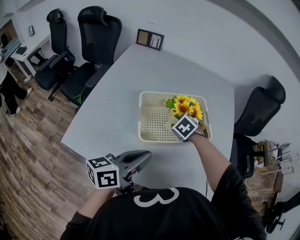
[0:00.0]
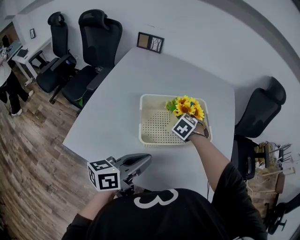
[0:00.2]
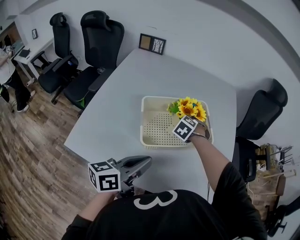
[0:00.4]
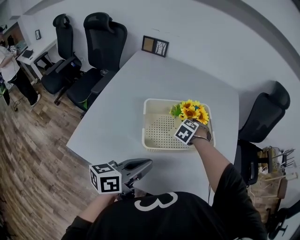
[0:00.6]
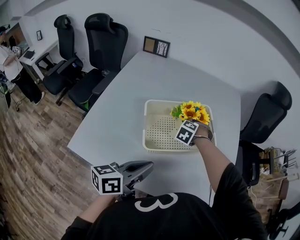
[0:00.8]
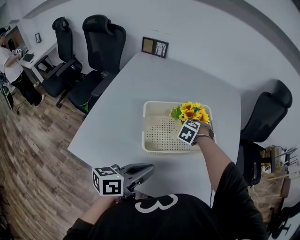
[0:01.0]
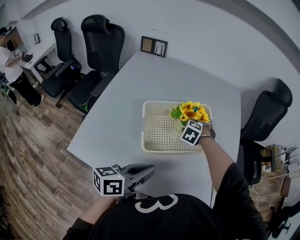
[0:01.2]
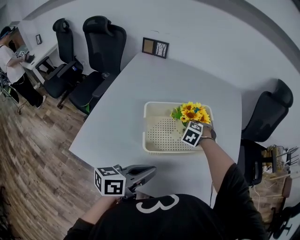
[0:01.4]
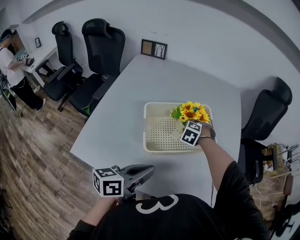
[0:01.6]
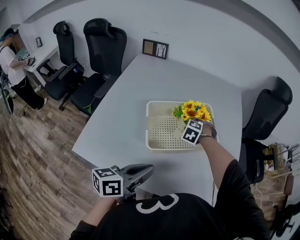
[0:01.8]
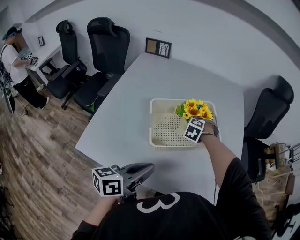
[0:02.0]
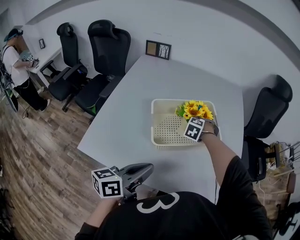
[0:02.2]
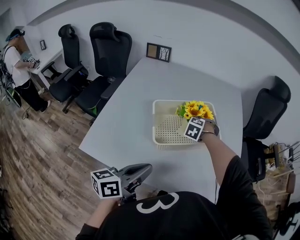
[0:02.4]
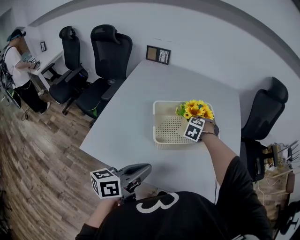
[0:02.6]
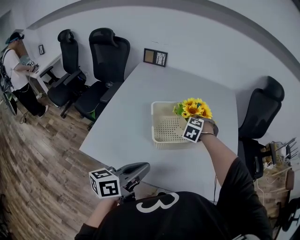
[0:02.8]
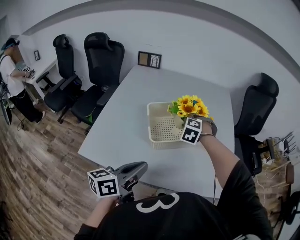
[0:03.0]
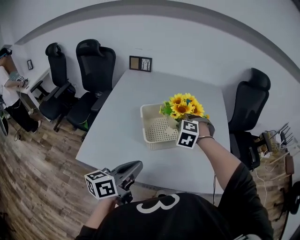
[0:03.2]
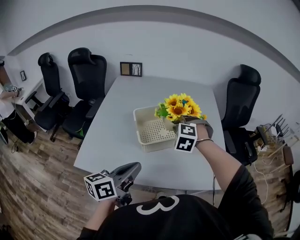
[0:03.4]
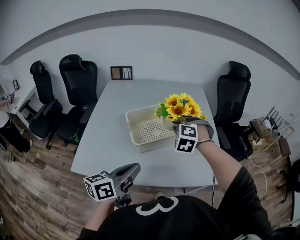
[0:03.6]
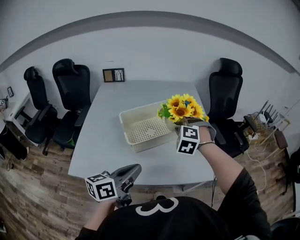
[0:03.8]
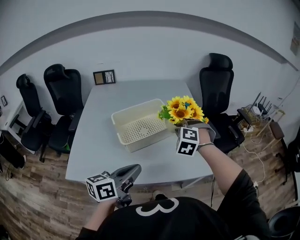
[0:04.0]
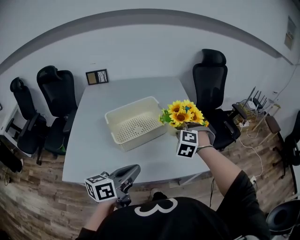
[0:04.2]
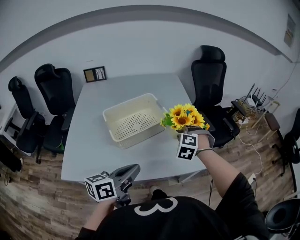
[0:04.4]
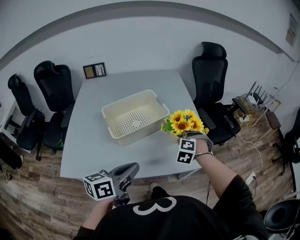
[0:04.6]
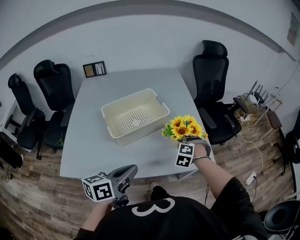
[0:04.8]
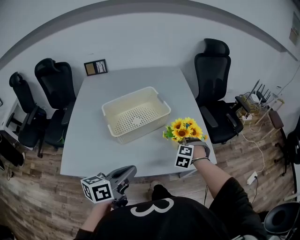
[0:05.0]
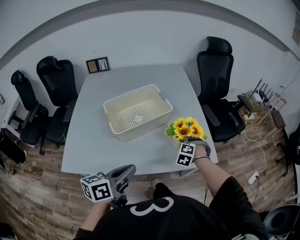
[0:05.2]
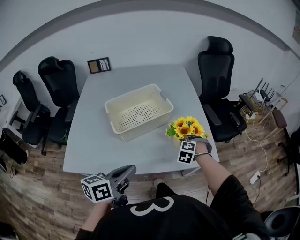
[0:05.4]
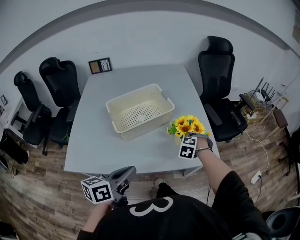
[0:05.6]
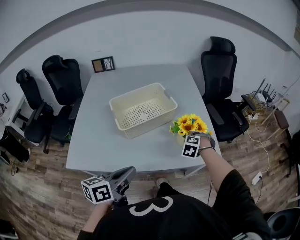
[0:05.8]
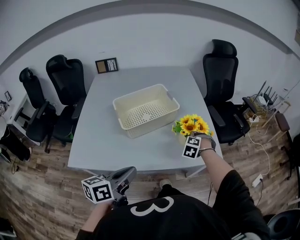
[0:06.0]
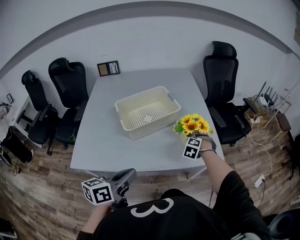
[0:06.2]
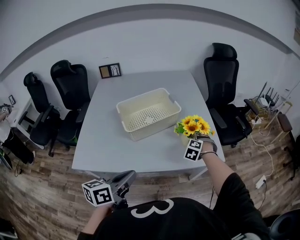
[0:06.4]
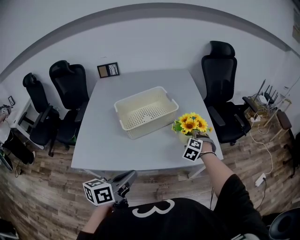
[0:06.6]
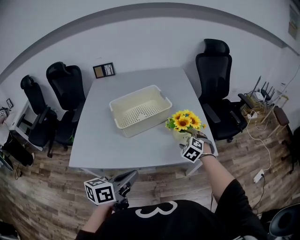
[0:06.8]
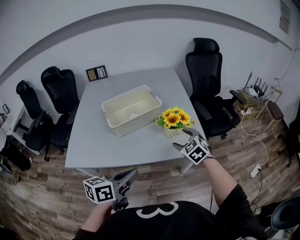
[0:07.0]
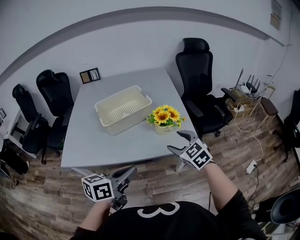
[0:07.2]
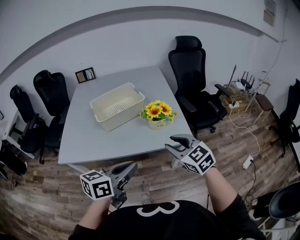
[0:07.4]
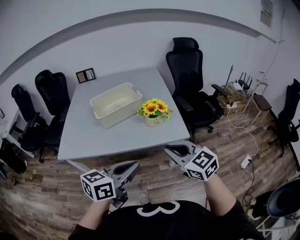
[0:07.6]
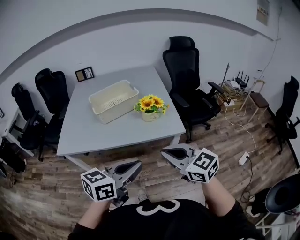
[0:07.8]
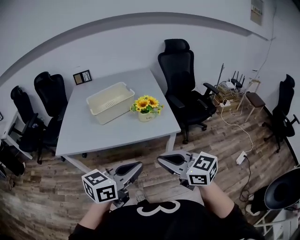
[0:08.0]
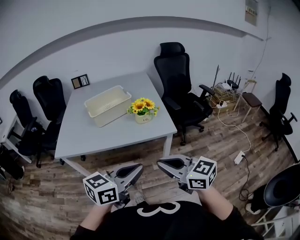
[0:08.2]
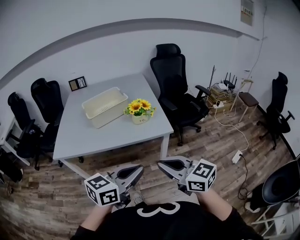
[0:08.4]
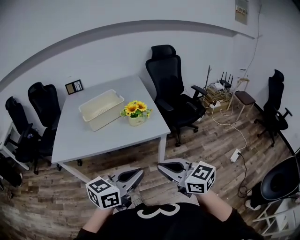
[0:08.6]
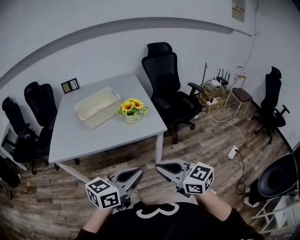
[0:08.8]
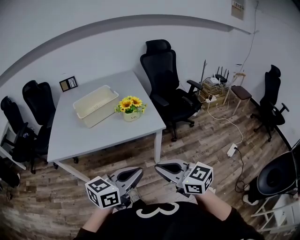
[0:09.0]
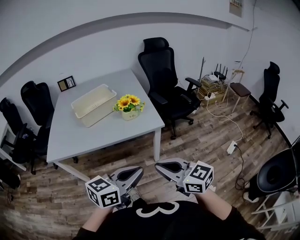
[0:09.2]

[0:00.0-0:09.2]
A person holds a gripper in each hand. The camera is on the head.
0:00.0 to 0:01.6: The right gripper shifts by roughly 5 cm.
0:01.6 to 0:03.0: The left gripper is displaced backward by about 10 cm; the right gripper goes roughly 10 cm upward and backward.
0:03.0 to 0:04.6: The left gripper goes roughly 10 cm to the right, while the right gripper travels to the right by about 25 cm.
0:04.6 to 0:06.2: The left gripper goes approximately 5 cm backward, while the right gripper travels downward by roughly 10 cm, and opens its fingers.
0:06.2 to 0:07.6: The right gripper moves backward and upward, roughly 35 cm, tilts its fingers roughly 40 degrees upward, and closes. The left gripper heads to the right and backward, covering about 20 cm.
0:07.6 to 0:09.2: The right gripper moves backward, roughly 15 cm. The left gripper goes approximately 15 cm backward and to the right.

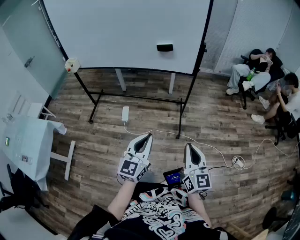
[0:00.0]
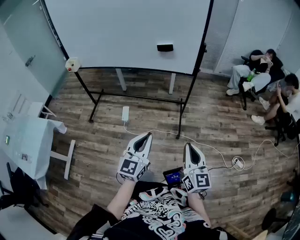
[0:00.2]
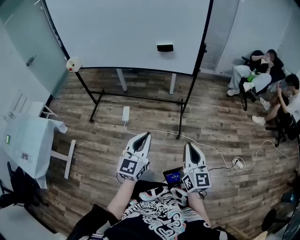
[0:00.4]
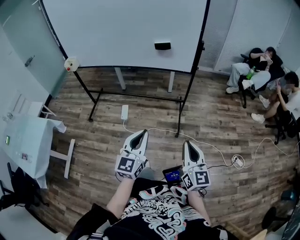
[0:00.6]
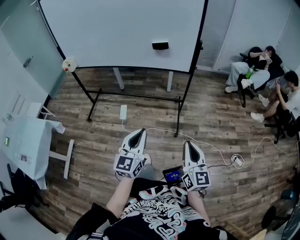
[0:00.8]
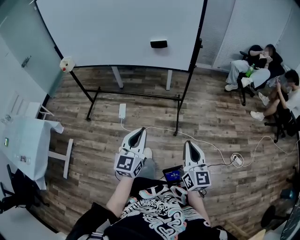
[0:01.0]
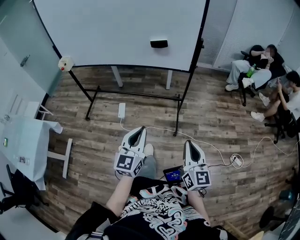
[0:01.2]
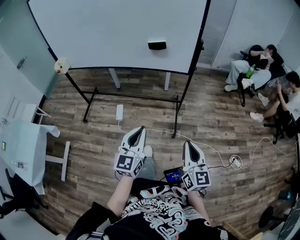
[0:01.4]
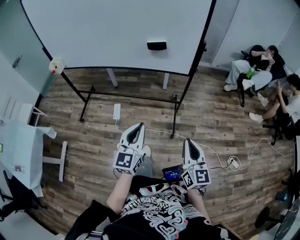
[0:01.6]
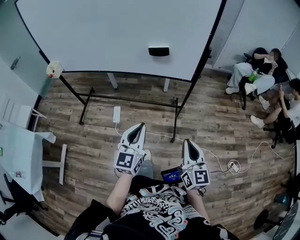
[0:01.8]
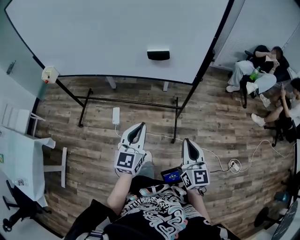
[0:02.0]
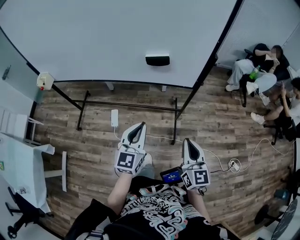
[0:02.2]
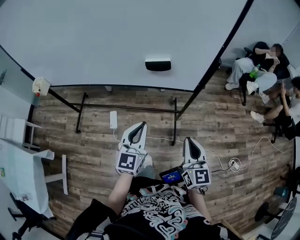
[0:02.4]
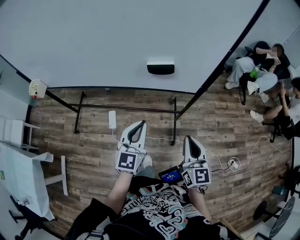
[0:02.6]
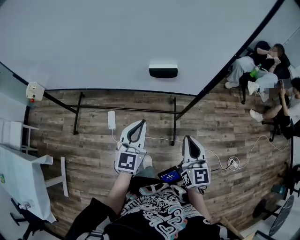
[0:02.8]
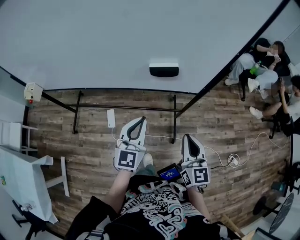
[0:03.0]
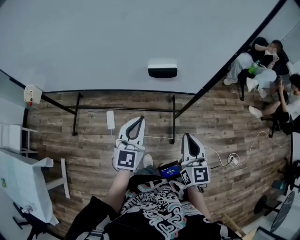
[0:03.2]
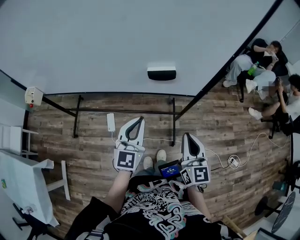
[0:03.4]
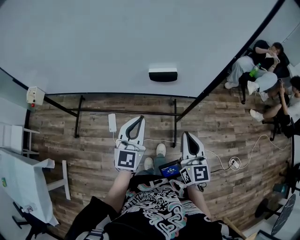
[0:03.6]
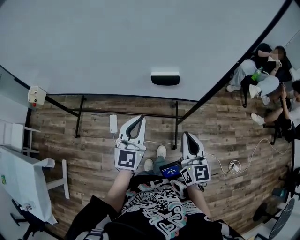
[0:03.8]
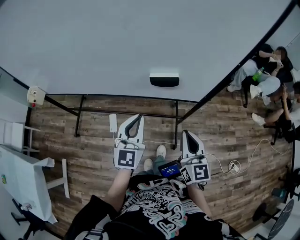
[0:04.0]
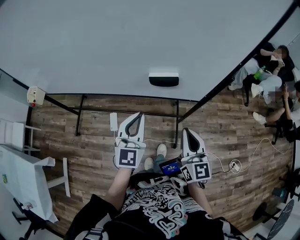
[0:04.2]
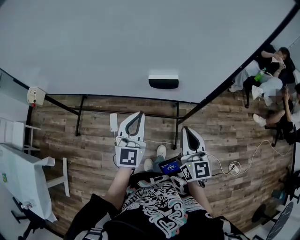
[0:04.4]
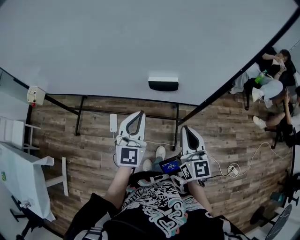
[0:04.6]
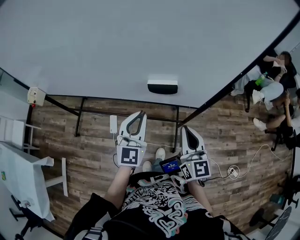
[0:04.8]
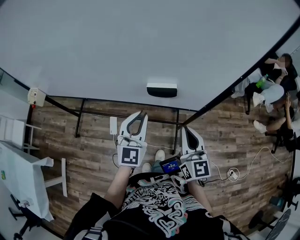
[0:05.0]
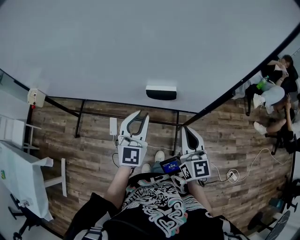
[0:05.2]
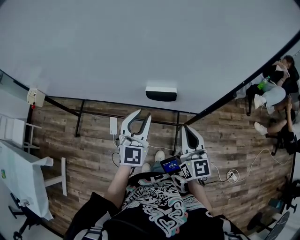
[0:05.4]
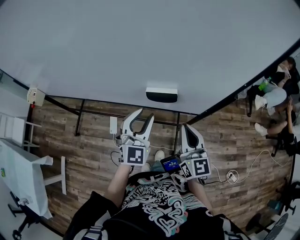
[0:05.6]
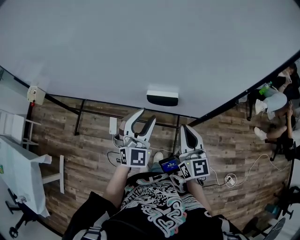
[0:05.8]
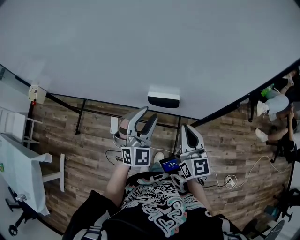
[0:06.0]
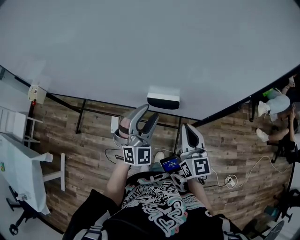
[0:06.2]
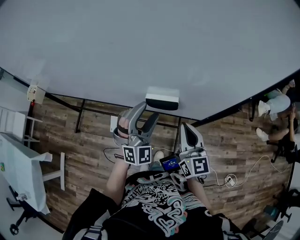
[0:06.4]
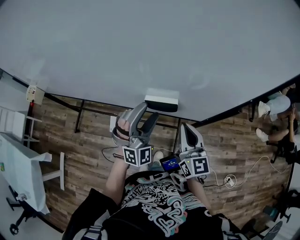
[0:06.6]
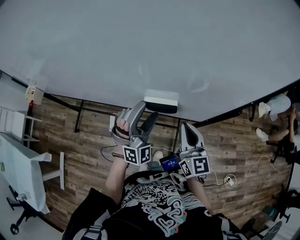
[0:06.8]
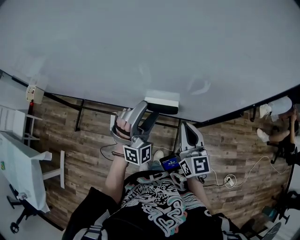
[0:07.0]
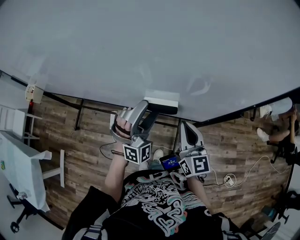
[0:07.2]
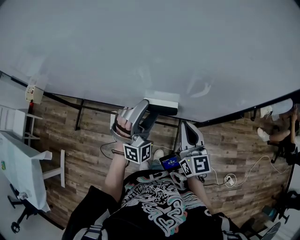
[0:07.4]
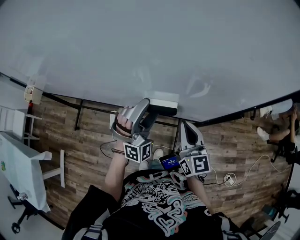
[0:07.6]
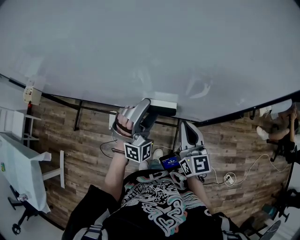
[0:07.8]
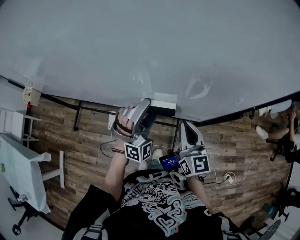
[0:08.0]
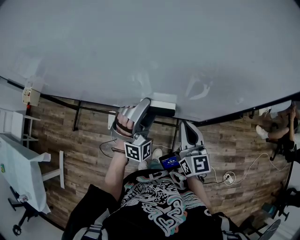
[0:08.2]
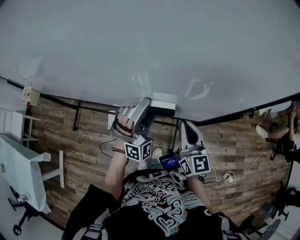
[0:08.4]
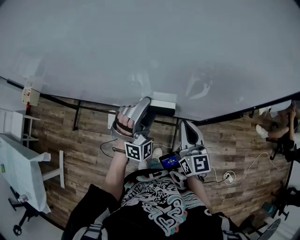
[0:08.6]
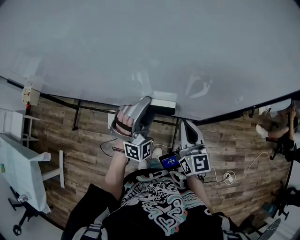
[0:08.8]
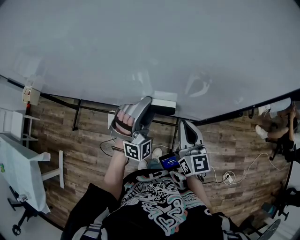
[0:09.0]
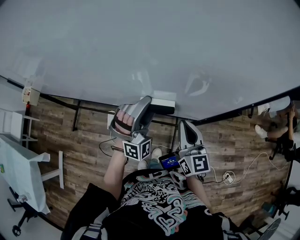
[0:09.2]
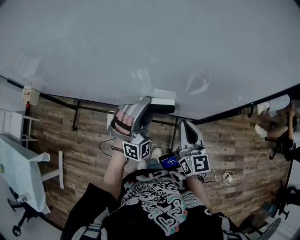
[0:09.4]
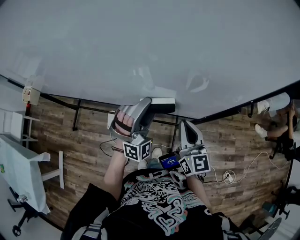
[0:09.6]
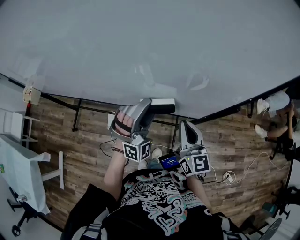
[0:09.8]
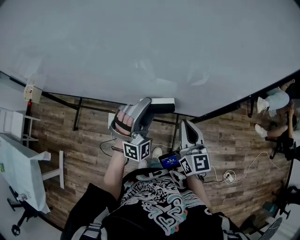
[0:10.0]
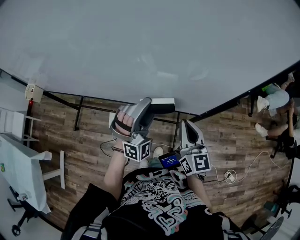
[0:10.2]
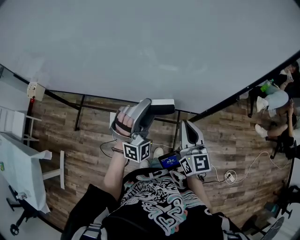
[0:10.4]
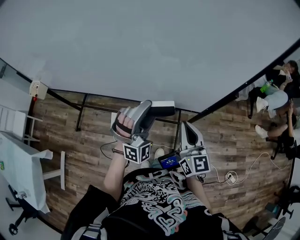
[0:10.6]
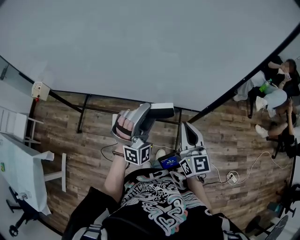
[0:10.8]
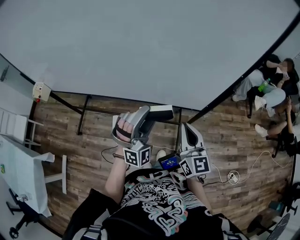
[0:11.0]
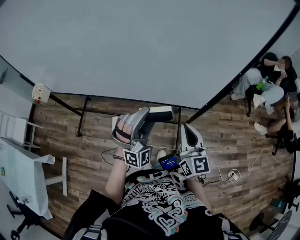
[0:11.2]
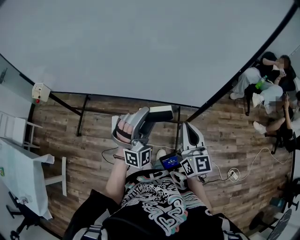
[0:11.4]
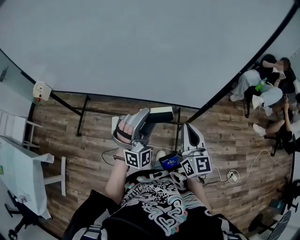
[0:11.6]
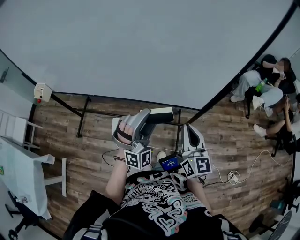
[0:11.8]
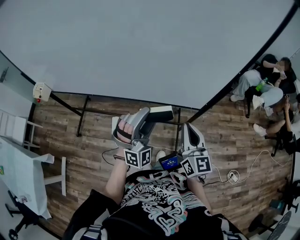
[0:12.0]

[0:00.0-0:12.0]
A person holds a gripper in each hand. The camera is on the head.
0:00.0 to 0:01.6: The two grippers go about 15 cm forward.
0:01.6 to 0:03.0: Both grippers travel together forward, some 25 cm.
0:03.0 to 0:04.4: The grippers both shift forward by some 5 cm.
0:04.4 to 0:06.0: The grippers both shift forward by about 10 cm. The left gripper turns by approximately 30 degrees, and opens up.
0:06.0 to 0:07.6: The left gripper shifts by some 5 cm, turns by about 30 degrees, and opens up.
0:07.6 to 0:09.0: Both grippers stay about where they are.
0:09.0 to 0:10.4: The grippers both shift backward by about 5 cm.
0:10.4 to 0:12.0: The two grippers go roughly 5 cm backward.

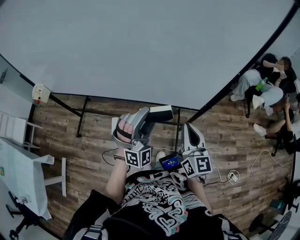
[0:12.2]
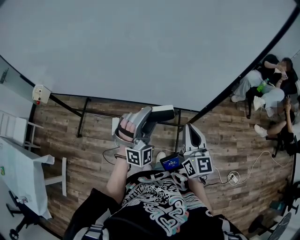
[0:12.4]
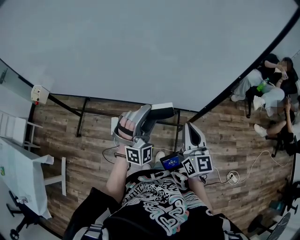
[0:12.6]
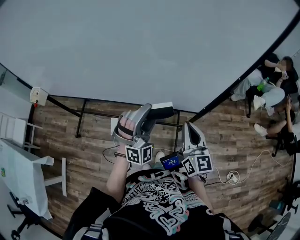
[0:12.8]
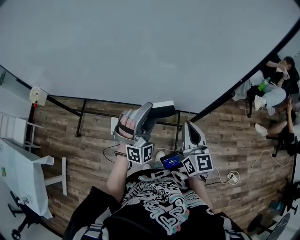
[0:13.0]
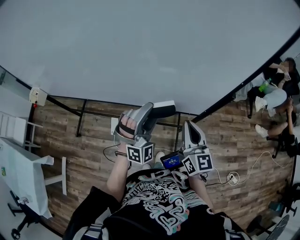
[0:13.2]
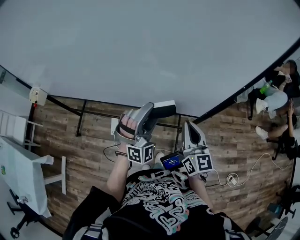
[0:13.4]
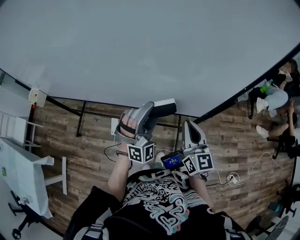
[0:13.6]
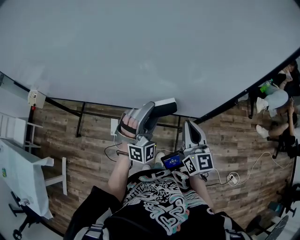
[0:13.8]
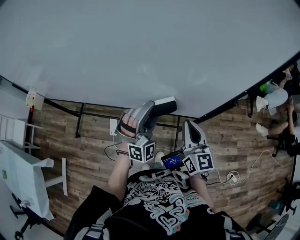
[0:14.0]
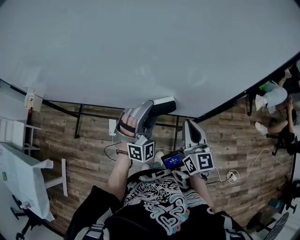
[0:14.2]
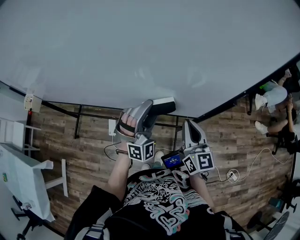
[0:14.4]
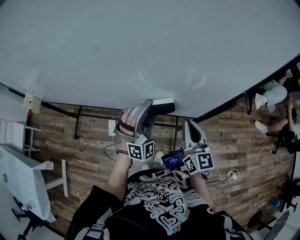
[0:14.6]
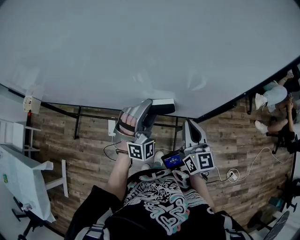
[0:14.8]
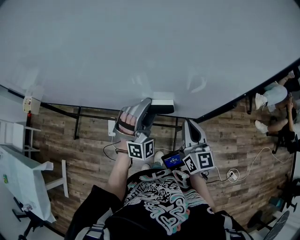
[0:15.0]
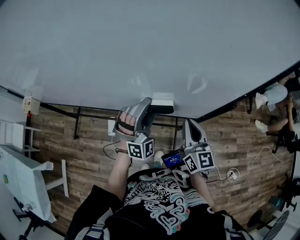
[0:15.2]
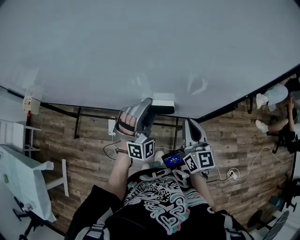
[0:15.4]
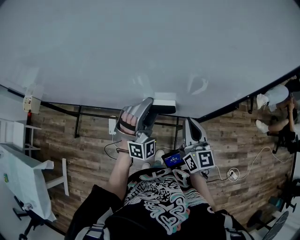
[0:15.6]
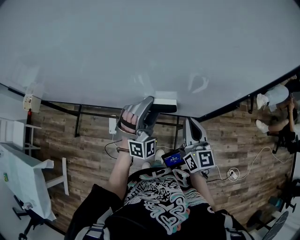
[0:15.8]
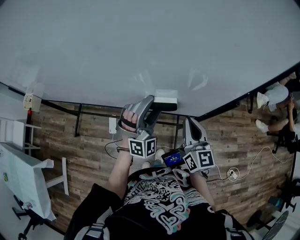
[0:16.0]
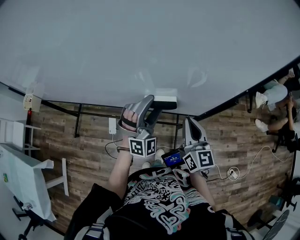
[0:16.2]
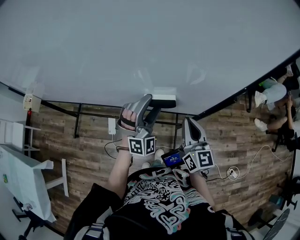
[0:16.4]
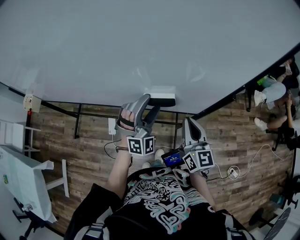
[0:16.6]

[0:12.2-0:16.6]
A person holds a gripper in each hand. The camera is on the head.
0:12.2 to 0:13.6: The two grippers go about 10 cm forward.
0:13.6 to 0:15.2: The left gripper changes place by some 5 cm.
0:15.2 to 0:16.6: The grippers move only a little.
